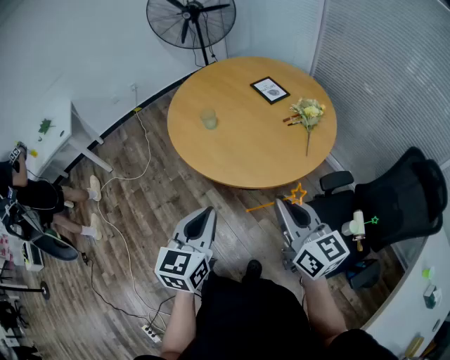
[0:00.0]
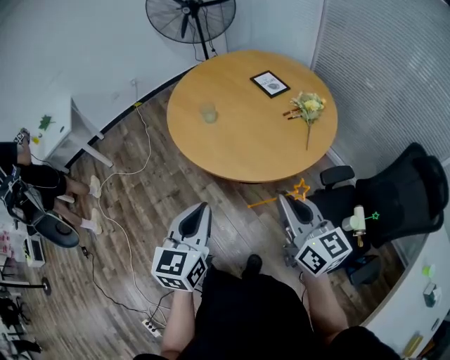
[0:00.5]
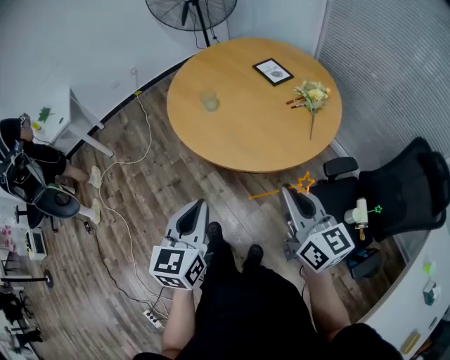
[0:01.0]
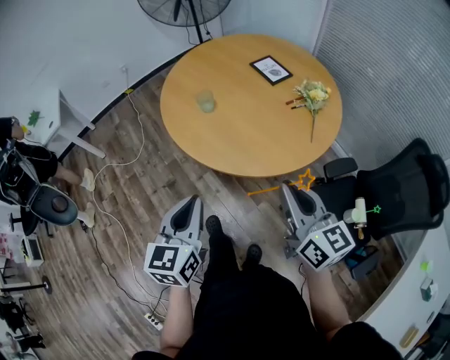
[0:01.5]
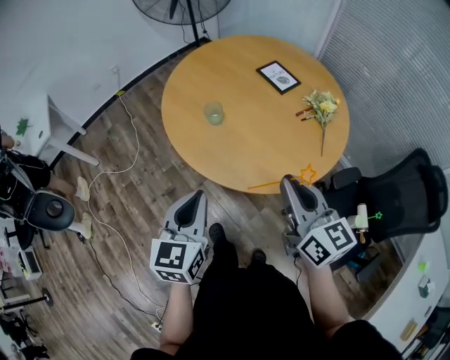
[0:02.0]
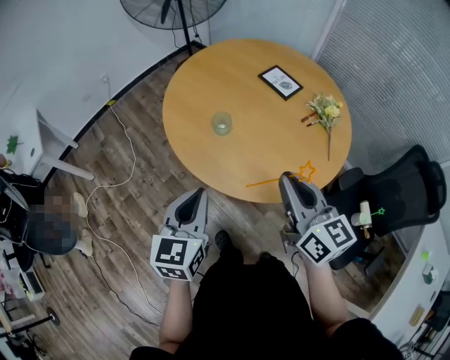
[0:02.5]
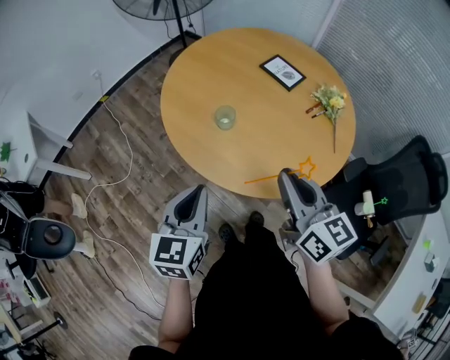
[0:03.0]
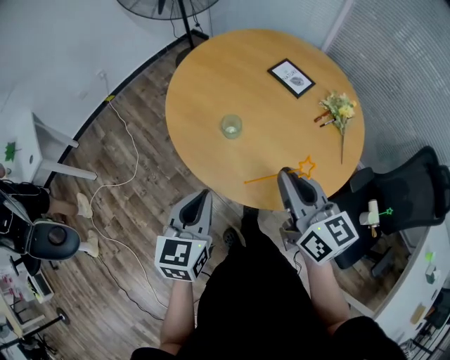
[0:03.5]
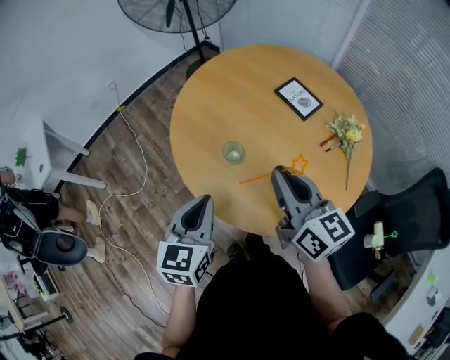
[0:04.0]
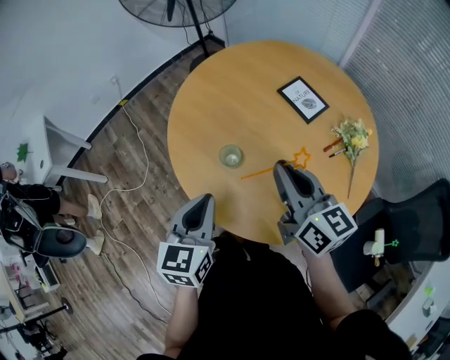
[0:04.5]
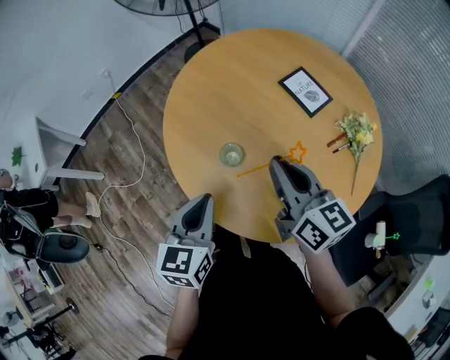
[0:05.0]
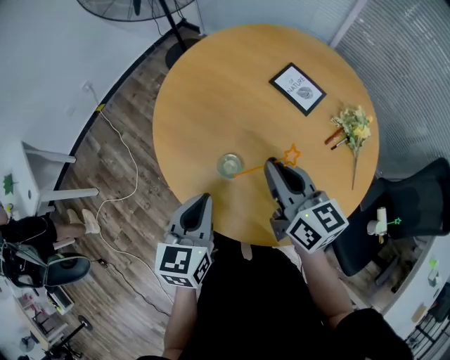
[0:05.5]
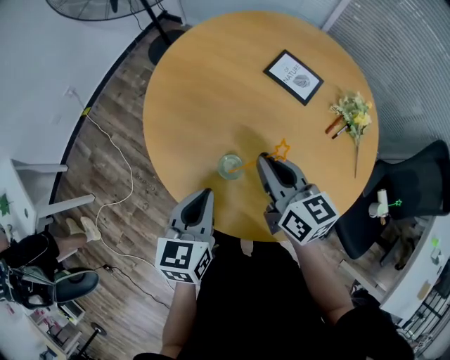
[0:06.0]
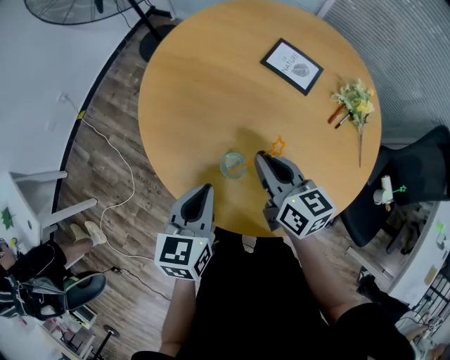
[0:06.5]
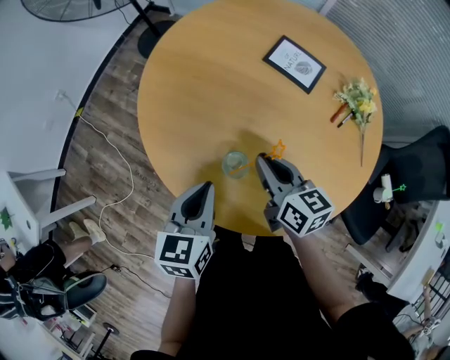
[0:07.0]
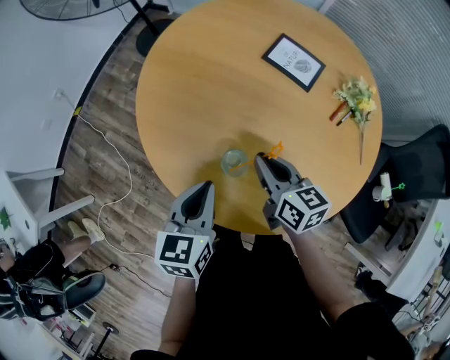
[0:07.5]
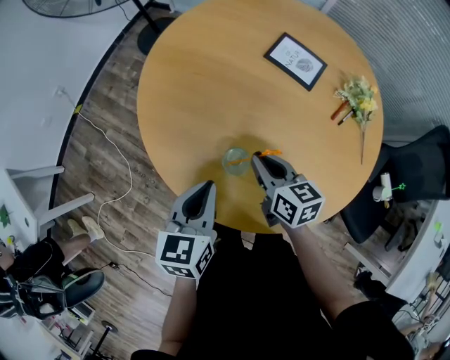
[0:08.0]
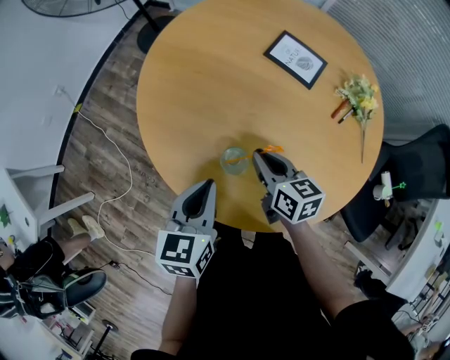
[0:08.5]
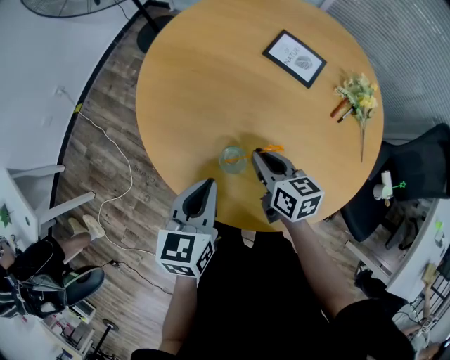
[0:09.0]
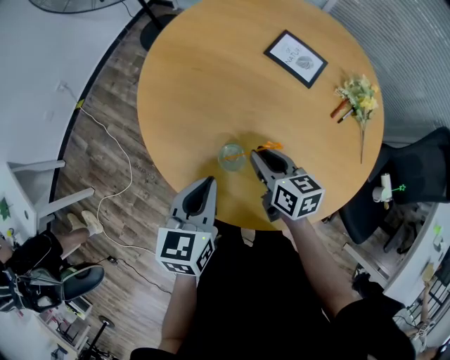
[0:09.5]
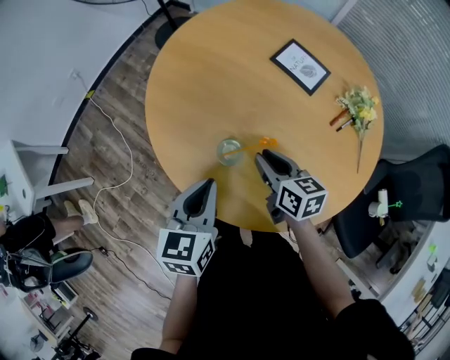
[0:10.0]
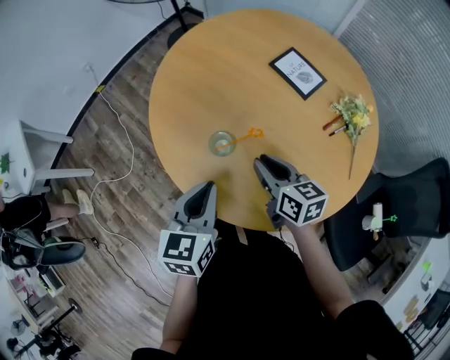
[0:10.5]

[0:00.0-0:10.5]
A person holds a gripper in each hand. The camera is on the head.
0:00.0 to 0:02.0: The right gripper shifts approximately 15 cm forward. Meanwhile the left gripper shifts roughly 20 cm forward and to the left.
0:02.0 to 0:04.0: The two grippers go about 20 cm forward.
0:04.0 to 0:06.5: The left gripper goes some 20 cm forward and downward, and changes its angle by about 20 degrees, while the right gripper heads downward and forward, covering approximately 20 cm, and turns by approximately 20 degrees.
0:06.5 to 0:08.5: The right gripper heads downward, covering about 5 cm.
0:08.5 to 0:10.5: Both grippers travel together backward, about 5 cm.

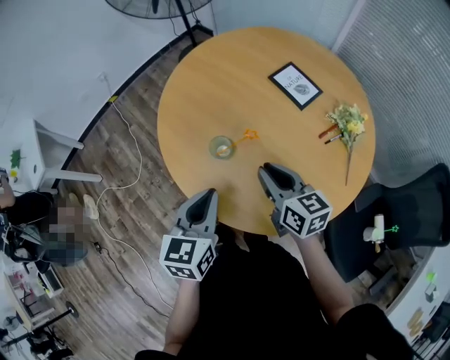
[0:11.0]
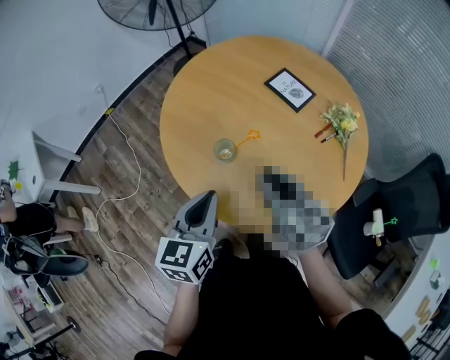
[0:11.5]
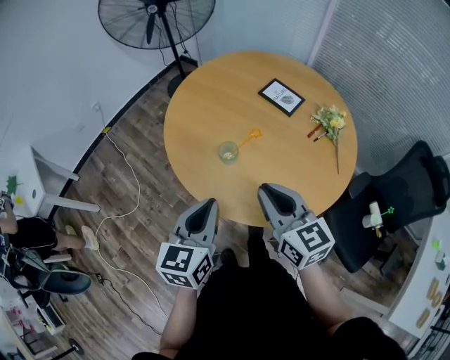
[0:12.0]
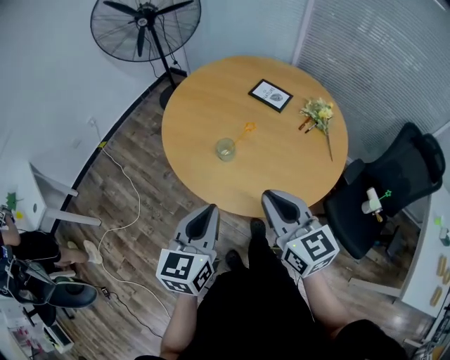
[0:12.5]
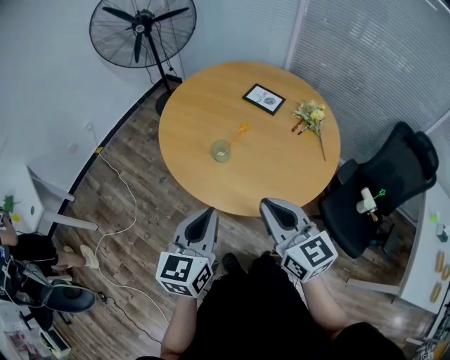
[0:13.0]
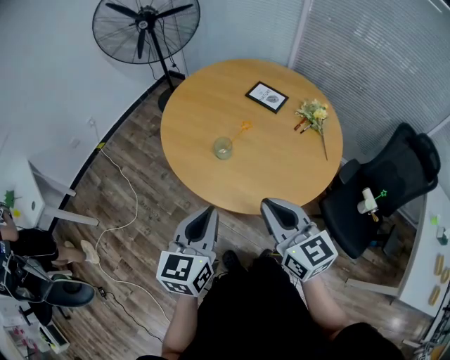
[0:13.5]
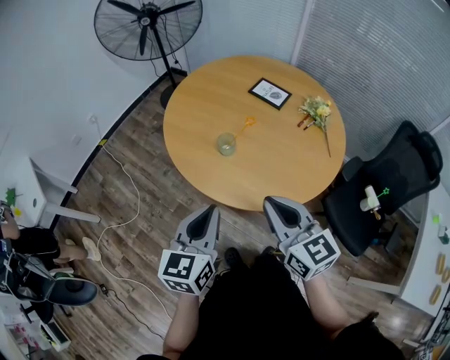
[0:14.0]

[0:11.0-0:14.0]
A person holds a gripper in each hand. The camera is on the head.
0:11.0 to 0:12.5: The left gripper goes roughly 15 cm backward, to the left and upward, while the right gripper moves backward, upward and to the left, some 25 cm, and turns by roughly 20 degrees.
0:12.5 to 0:14.0: The grippers make only small movements.

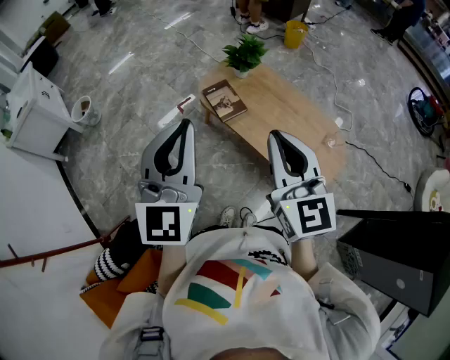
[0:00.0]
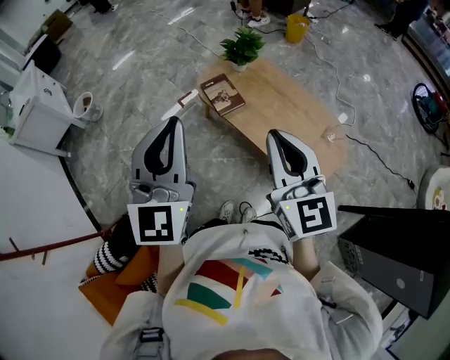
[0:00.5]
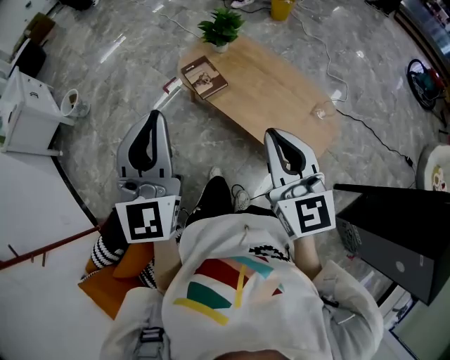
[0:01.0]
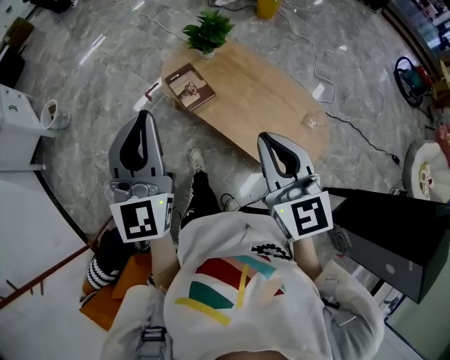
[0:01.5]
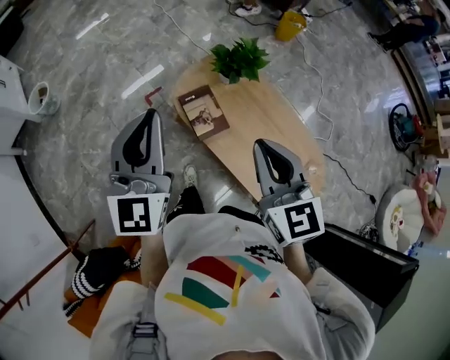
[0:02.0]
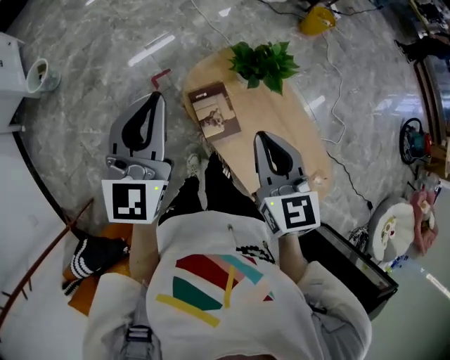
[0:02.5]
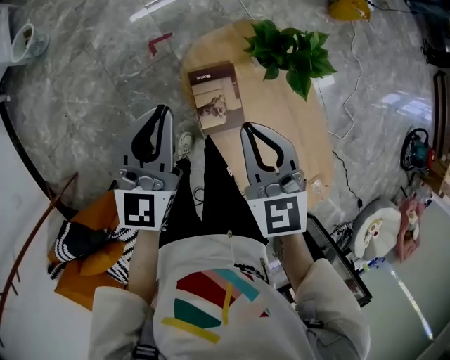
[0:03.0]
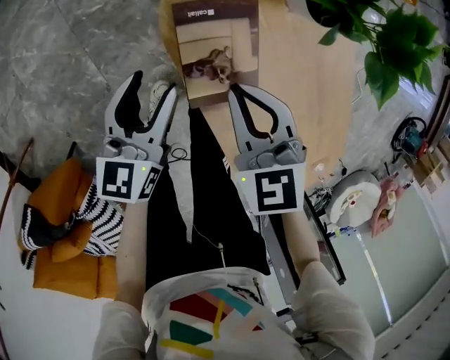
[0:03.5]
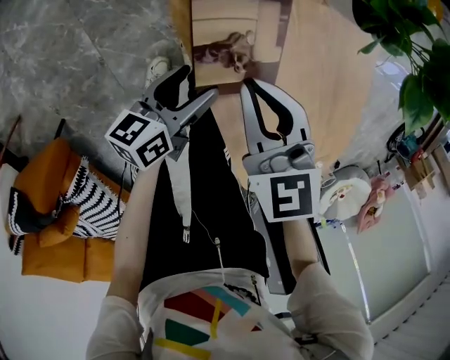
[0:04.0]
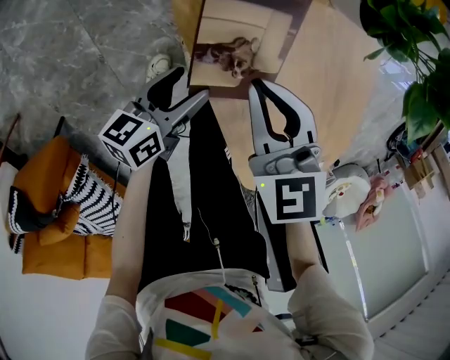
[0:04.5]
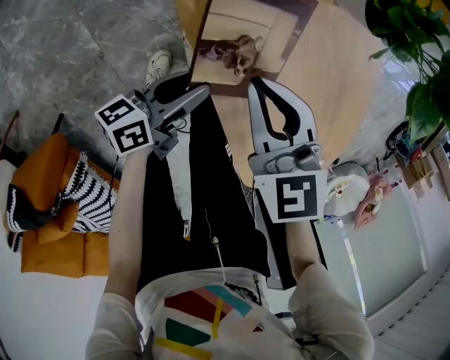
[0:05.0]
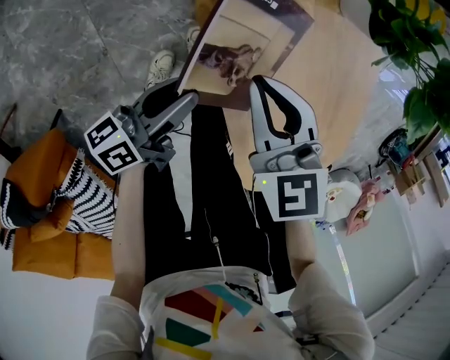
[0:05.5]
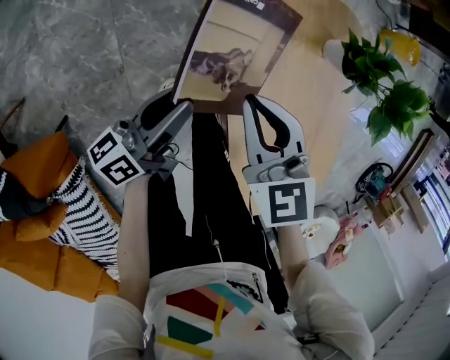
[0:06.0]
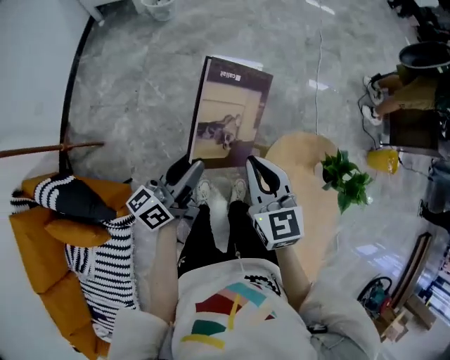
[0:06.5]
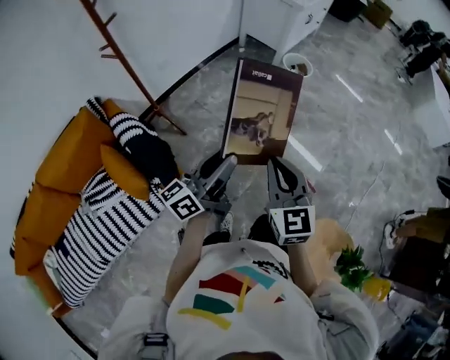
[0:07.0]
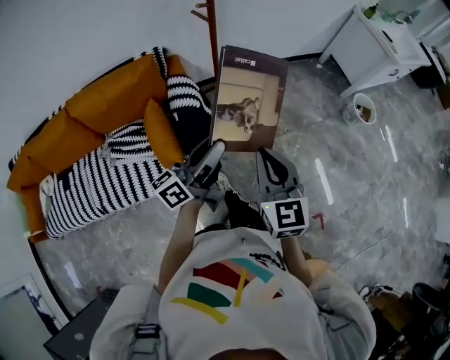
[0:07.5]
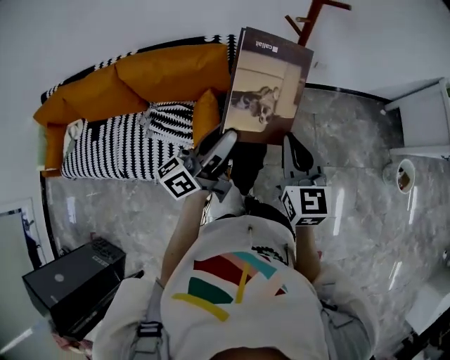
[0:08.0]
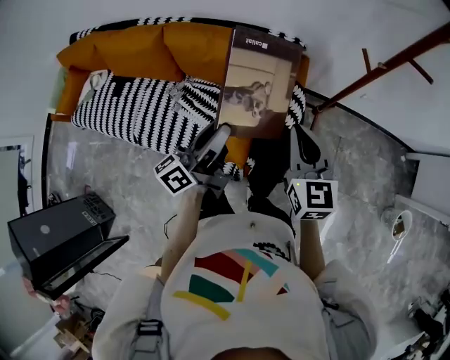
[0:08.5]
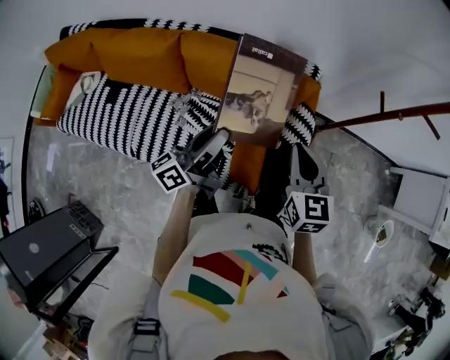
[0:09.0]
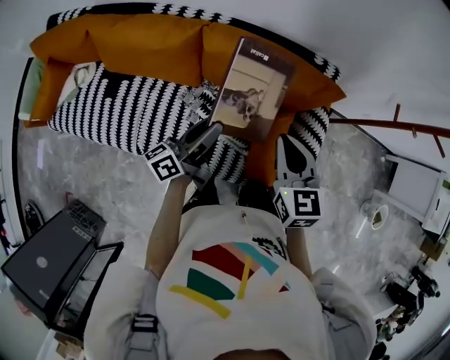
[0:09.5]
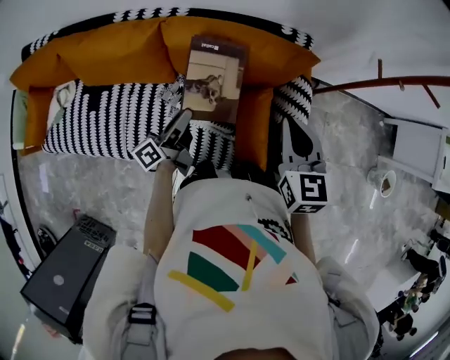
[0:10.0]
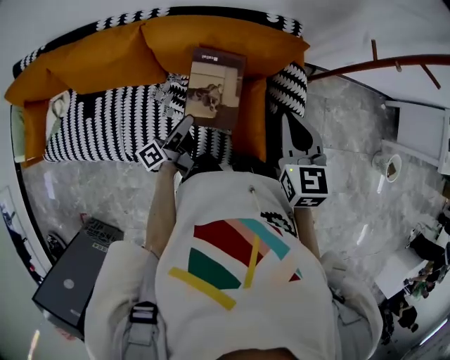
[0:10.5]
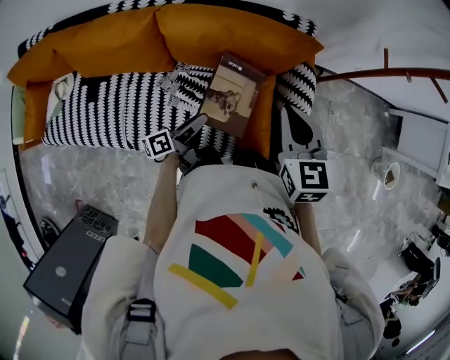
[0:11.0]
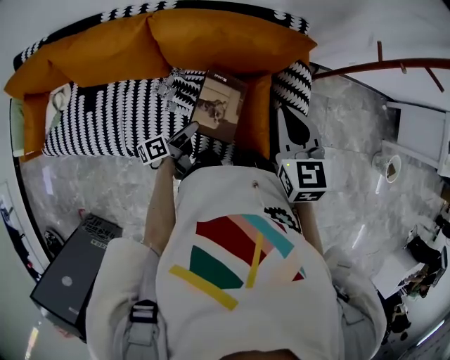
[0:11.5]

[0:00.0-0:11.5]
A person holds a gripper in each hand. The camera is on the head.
0:00.0 to 0:02.0: Both grippers move forward, approximately 25 cm.
0:02.0 to 0:04.0: The grippers both shift downward by some 50 cm. The right gripper rotates approximately 40 degrees; the left gripper rotates around the line of its fingers by about 70 degrees, counterclockwise from behind, and opens its fingers.
0:04.0 to 0:06.0: The grippers both shift to the left and upward by about 15 cm. The left gripper swivels about 30 degrees, and closes.
0:06.0 to 0:07.5: Both grippers are carried approximately 60 cm. The right gripper points its fingers some 30 degrees further upward, while the left gripper turns by roughly 90 degrees.
0:07.5 to 0:09.5: The two grippers travel together, about 60 cm. The left gripper turns by about 30 degrees, while the right gripper swivels roughly 30 degrees.
0:09.5 to 0:11.5: The left gripper is displaced downward by about 20 cm, and changes its angle by roughly 30 degrees; the right gripper is displaced to the right by roughly 10 cm.

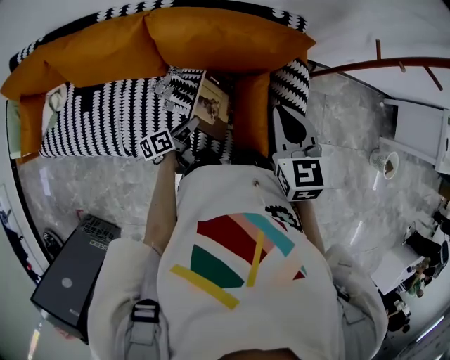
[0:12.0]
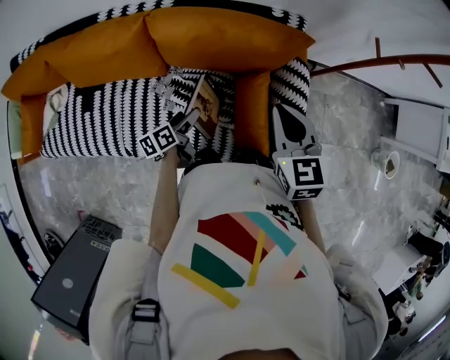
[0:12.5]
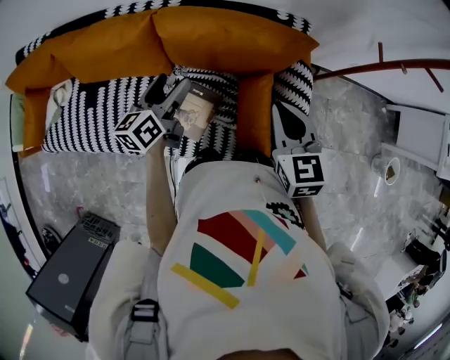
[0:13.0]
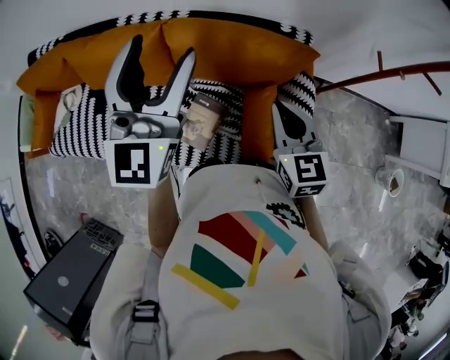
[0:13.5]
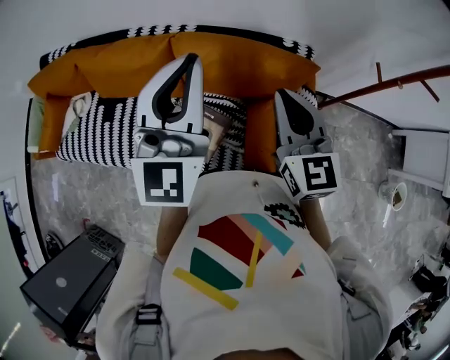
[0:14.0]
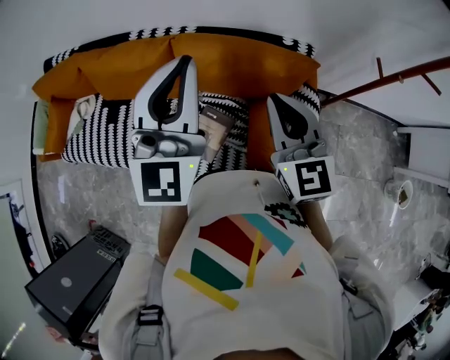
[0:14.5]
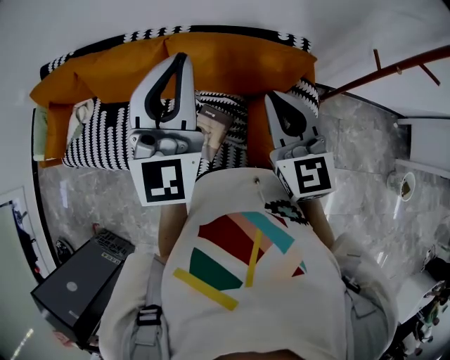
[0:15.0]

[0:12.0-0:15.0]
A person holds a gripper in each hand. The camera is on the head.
0:12.0 to 0:13.5: The left gripper shifts roughly 40 cm upward, rolls clockwise, seen from behind, by roughly 80 degrees, and opens.
0:13.5 to 0:15.0: The right gripper is displaced upward by about 10 cm, while the left gripper moves some 5 cm, and closes up.
